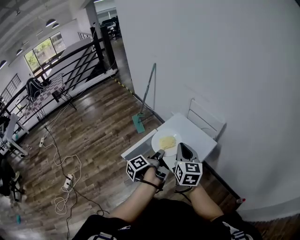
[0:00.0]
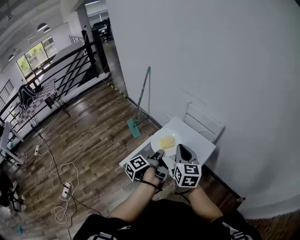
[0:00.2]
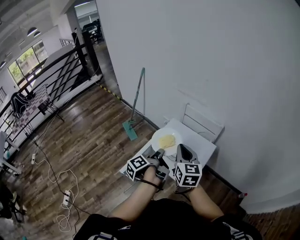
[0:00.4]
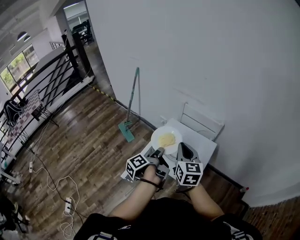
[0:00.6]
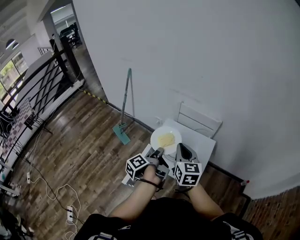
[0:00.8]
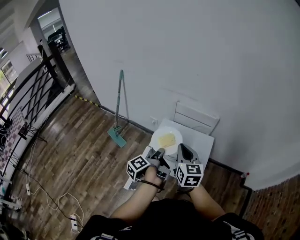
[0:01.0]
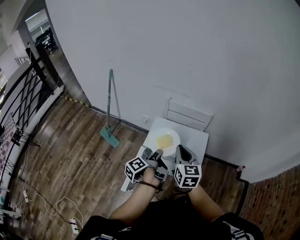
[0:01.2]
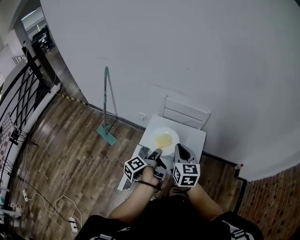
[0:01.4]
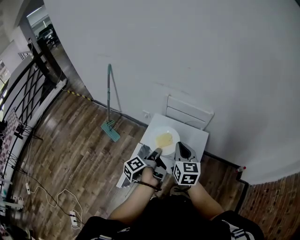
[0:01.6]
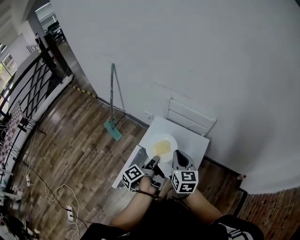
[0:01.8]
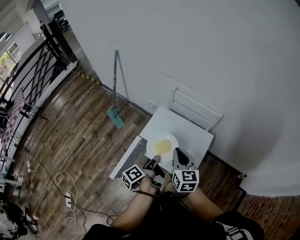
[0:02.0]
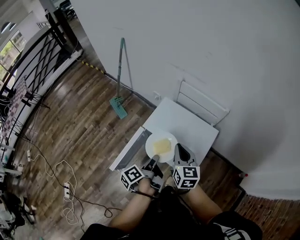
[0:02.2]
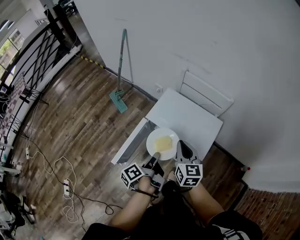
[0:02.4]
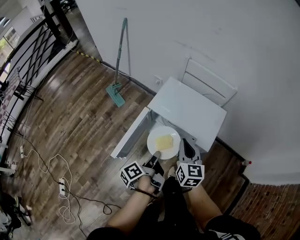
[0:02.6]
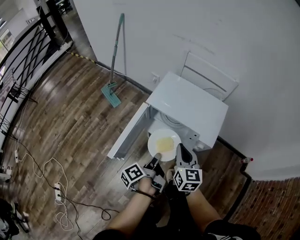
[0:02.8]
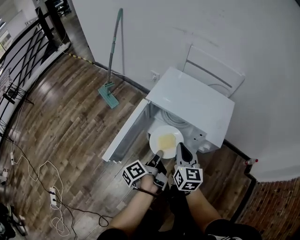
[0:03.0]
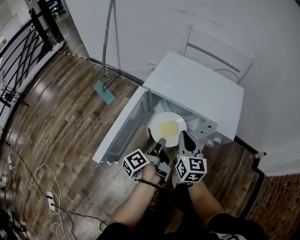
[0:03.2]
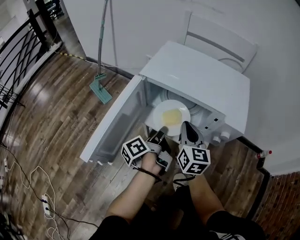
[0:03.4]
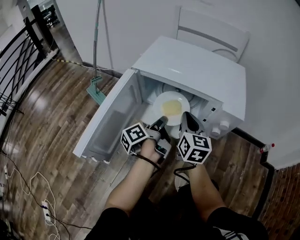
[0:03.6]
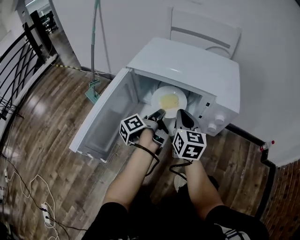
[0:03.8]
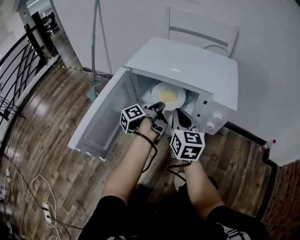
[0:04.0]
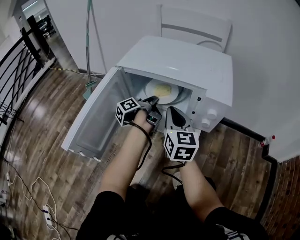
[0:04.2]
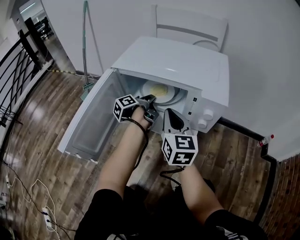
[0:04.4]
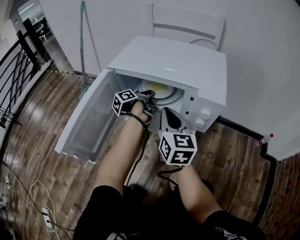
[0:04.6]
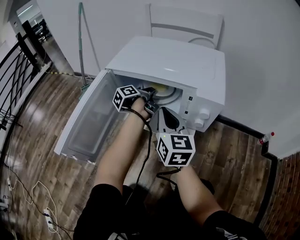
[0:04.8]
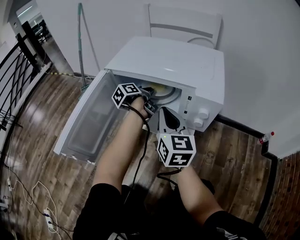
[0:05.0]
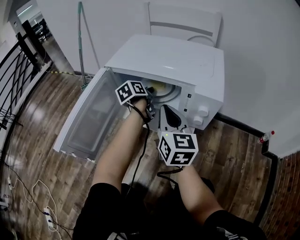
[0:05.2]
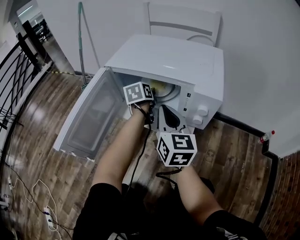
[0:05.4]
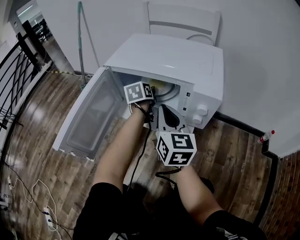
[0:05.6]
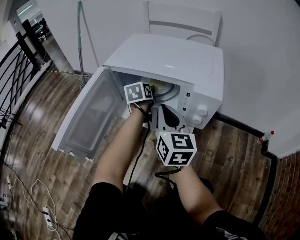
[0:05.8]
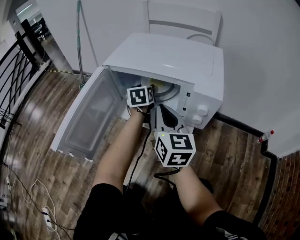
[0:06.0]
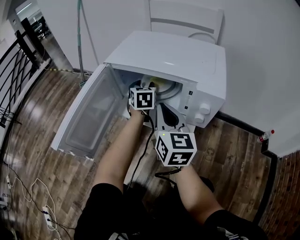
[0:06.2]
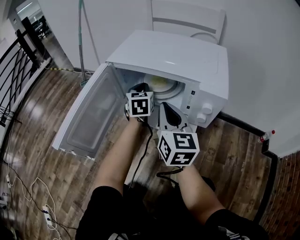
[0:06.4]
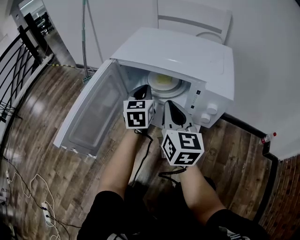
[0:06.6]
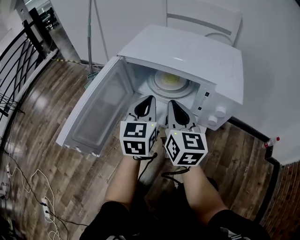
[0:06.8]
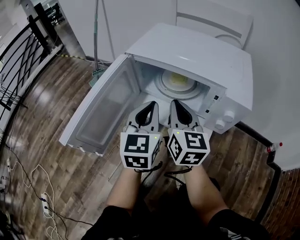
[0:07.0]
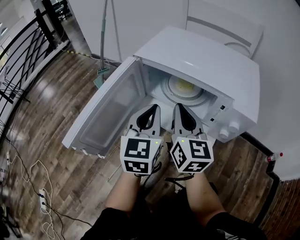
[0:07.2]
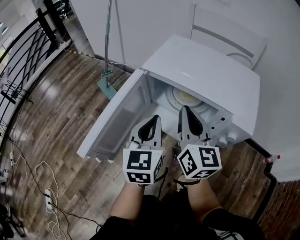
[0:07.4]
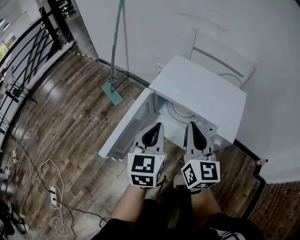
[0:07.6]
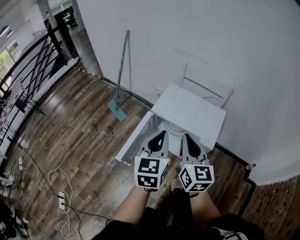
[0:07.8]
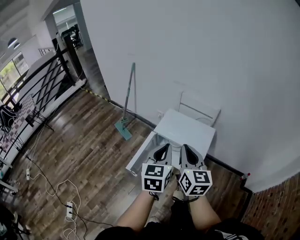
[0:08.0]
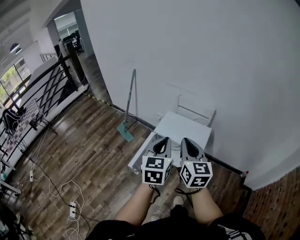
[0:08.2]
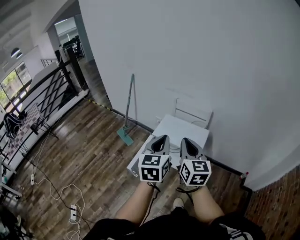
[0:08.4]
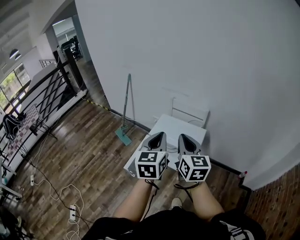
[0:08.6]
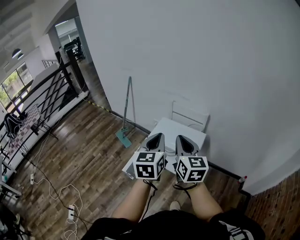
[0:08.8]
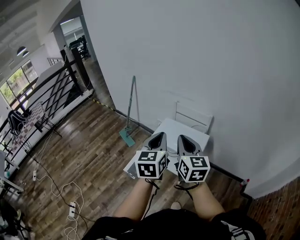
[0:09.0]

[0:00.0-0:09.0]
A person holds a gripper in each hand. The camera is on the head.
0:00.0 to 0:01.6: The right gripper changes place by approximately 15 cm, and turns by about 20 degrees.
0:01.6 to 0:03.0: The right gripper is displaced downward by some 30 cm.
0:03.0 to 0:04.4: The right gripper goes approximately 10 cm downward.
0:06.0 to 0:07.6: The right gripper shifts approximately 15 cm upward.
0:07.6 to 0:09.0: The right gripper travels upward by some 35 cm.

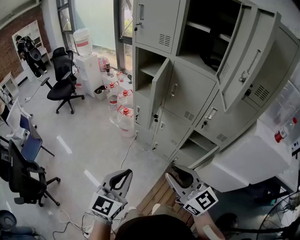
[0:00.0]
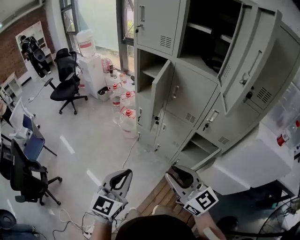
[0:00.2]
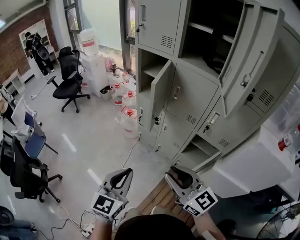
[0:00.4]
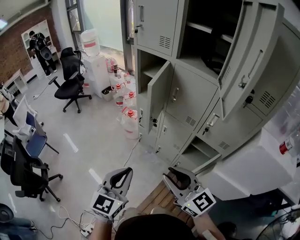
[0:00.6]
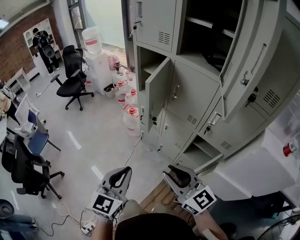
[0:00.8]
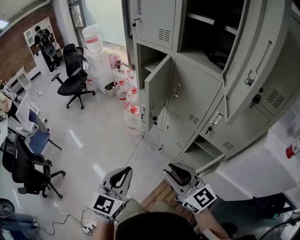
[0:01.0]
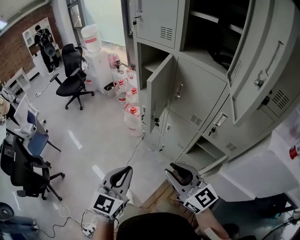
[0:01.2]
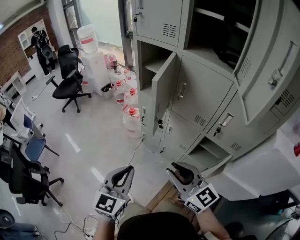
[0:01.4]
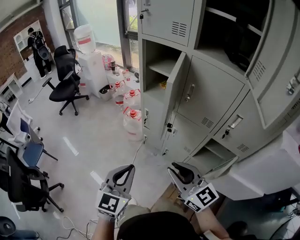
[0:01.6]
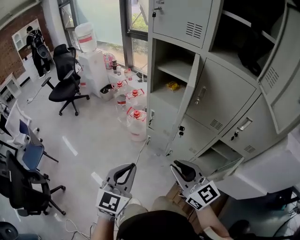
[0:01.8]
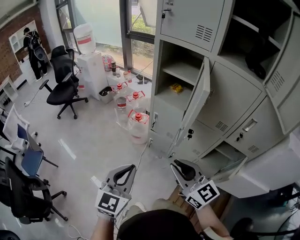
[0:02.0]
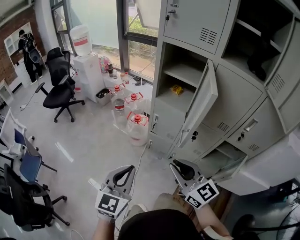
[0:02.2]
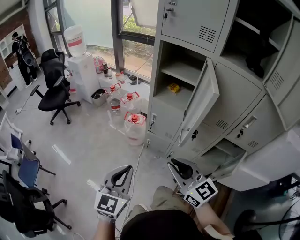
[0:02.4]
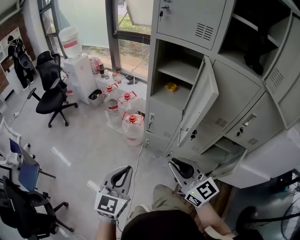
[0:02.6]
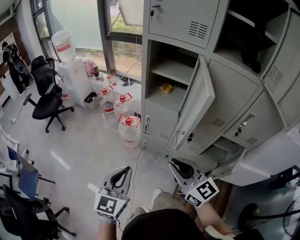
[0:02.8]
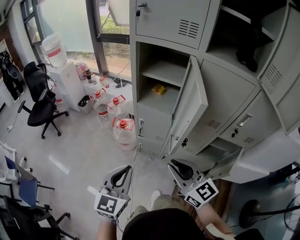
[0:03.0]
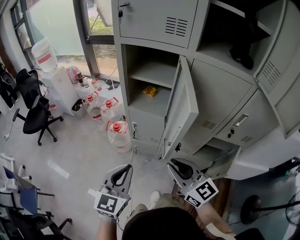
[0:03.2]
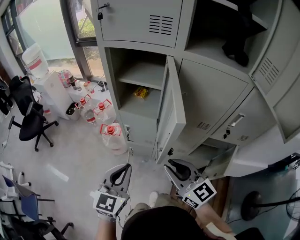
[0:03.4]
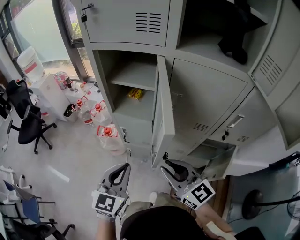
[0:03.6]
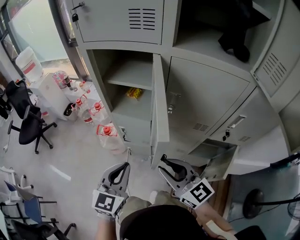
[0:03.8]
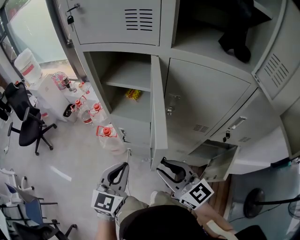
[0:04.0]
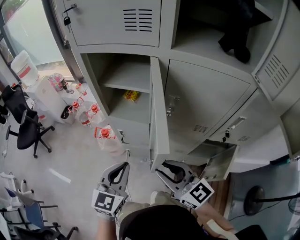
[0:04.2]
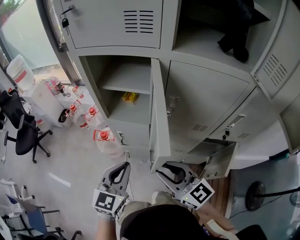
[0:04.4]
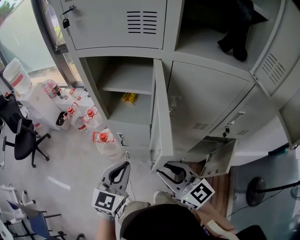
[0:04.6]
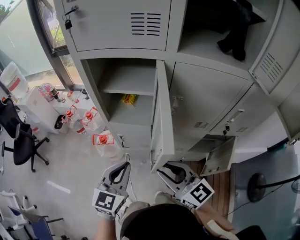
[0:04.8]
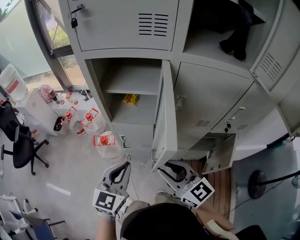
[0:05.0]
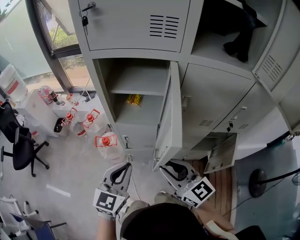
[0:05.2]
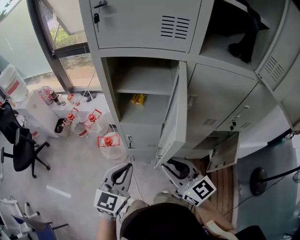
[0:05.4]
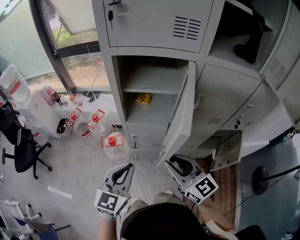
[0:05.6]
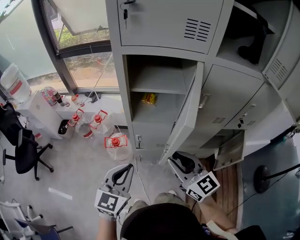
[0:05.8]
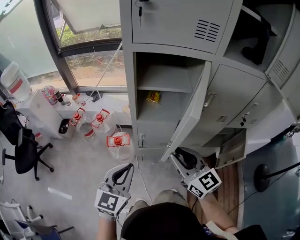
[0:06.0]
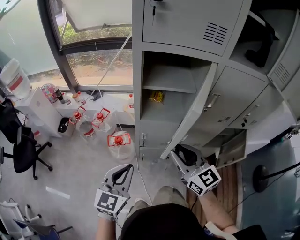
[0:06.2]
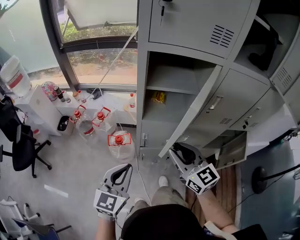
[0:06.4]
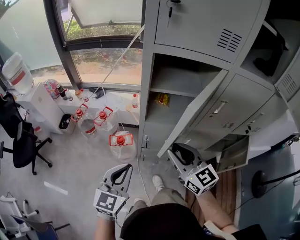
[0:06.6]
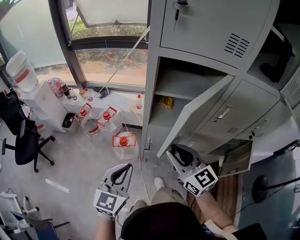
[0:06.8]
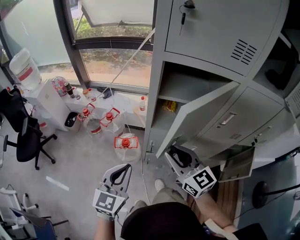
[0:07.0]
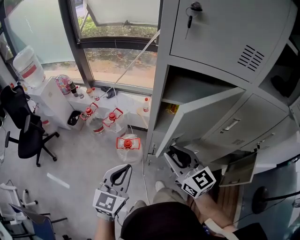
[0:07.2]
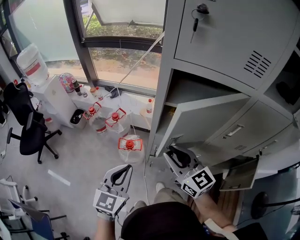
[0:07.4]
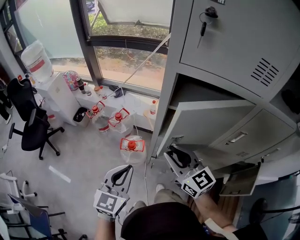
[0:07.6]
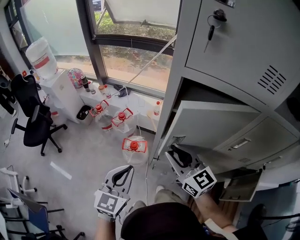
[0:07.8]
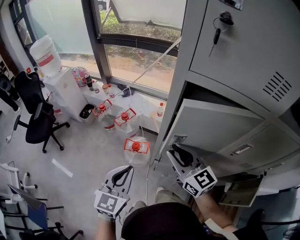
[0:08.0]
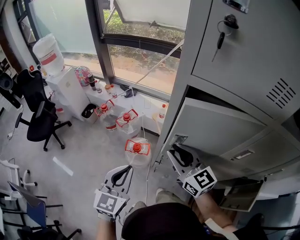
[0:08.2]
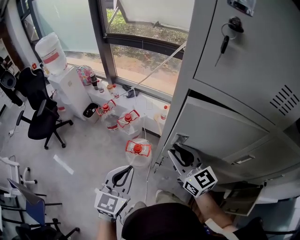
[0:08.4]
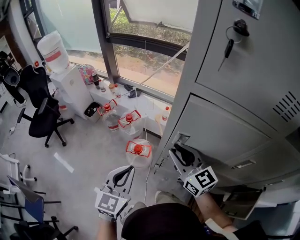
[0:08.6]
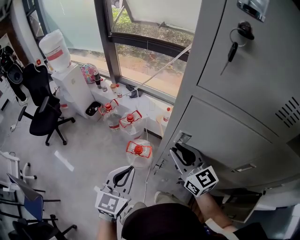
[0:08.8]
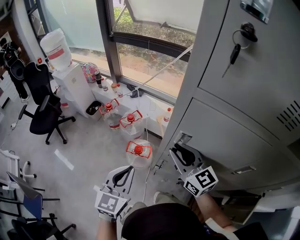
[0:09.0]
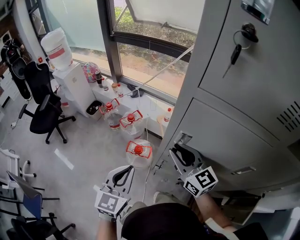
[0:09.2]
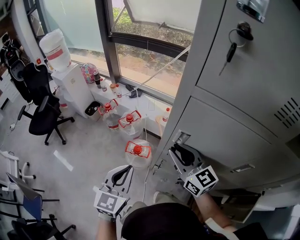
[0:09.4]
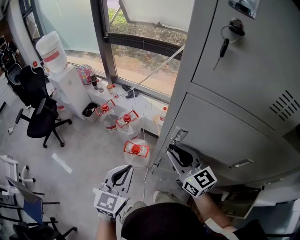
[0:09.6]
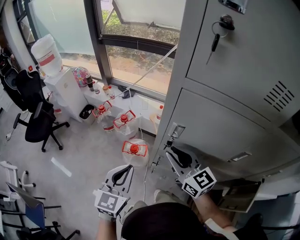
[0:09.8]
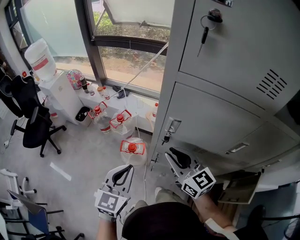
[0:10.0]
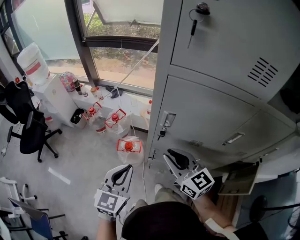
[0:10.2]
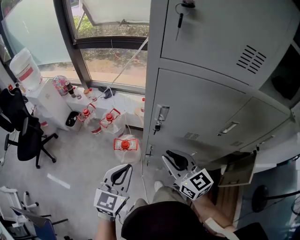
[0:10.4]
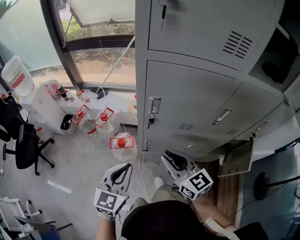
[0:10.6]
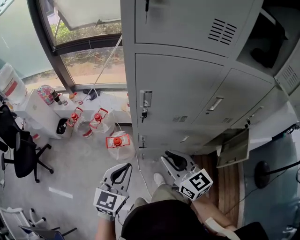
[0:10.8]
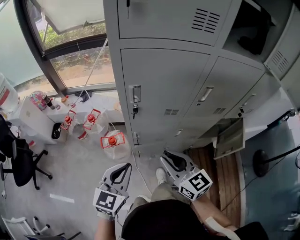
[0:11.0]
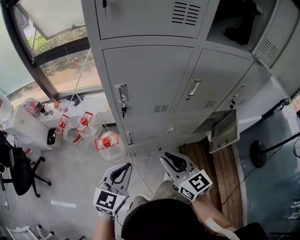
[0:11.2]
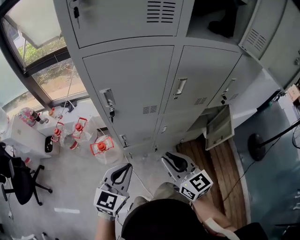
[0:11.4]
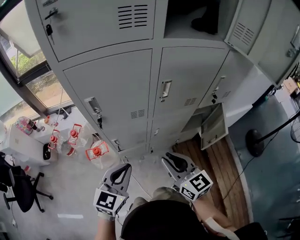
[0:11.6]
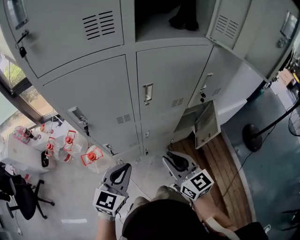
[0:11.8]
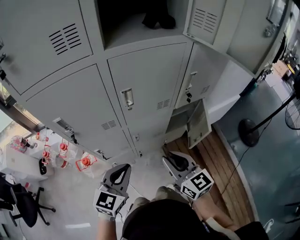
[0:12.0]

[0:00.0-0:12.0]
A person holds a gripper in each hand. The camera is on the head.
0:00.0 to 0:01.6: The grippers both shift forward and downward by approximately 15 cm.
0:01.6 to 0:03.0: The grippers both shift forward and to the left by some 15 cm.
0:03.0 to 0:04.4: The left gripper moves forward and to the right, about 20 cm, while the right gripper shifts roughly 10 cm forward and to the right.
0:04.4 to 0:06.0: The grippers both shift to the left by about 15 cm. The right gripper turns by about 20 degrees.
0:06.0 to 0:07.6: The right gripper shifts approximately 15 cm forward and to the left. Meanwhile the left gripper heads forward and to the left, covering about 10 cm.
0:07.6 to 0:09.0: The left gripper shifts some 5 cm forward. Meanwhile the right gripper is displaced forward by approximately 10 cm.
0:09.0 to 0:10.4: The right gripper is displaced backward by approximately 10 cm. The left gripper travels backward by about 5 cm.
0:10.4 to 0:12.0: The right gripper shifts by some 30 cm, and rotates roughly 30 degrees, while the left gripper changes place by some 30 cm, and rotates approximately 30 degrees.

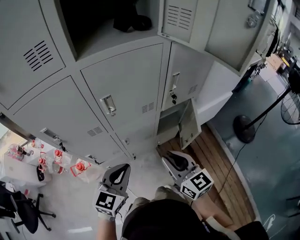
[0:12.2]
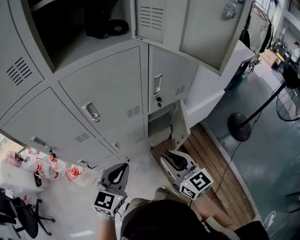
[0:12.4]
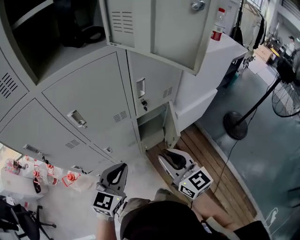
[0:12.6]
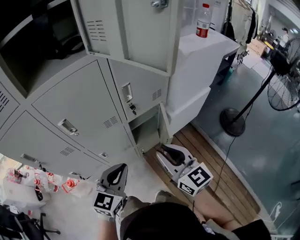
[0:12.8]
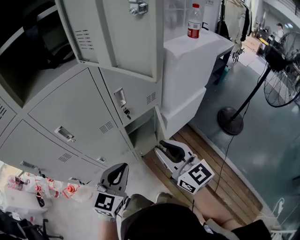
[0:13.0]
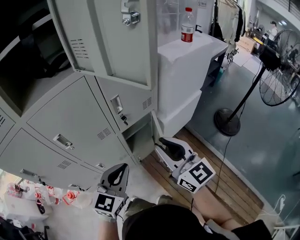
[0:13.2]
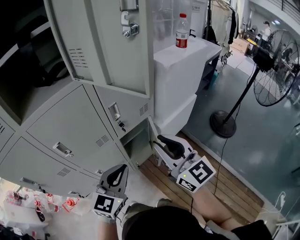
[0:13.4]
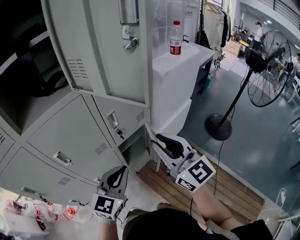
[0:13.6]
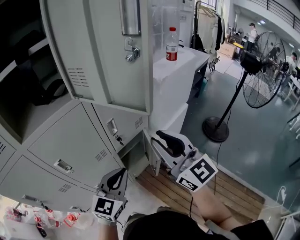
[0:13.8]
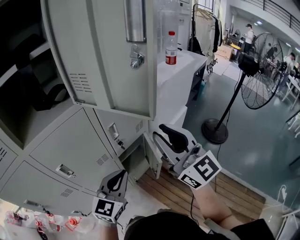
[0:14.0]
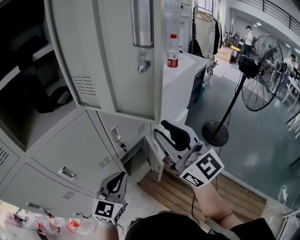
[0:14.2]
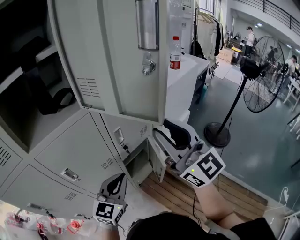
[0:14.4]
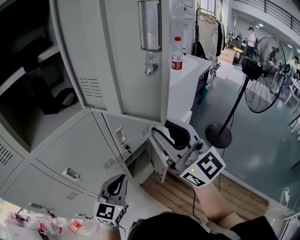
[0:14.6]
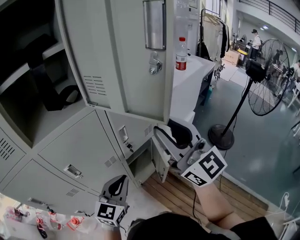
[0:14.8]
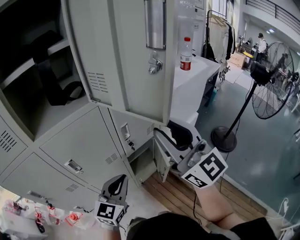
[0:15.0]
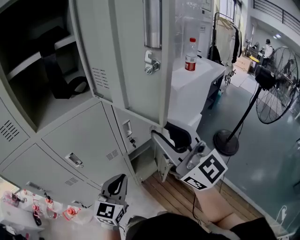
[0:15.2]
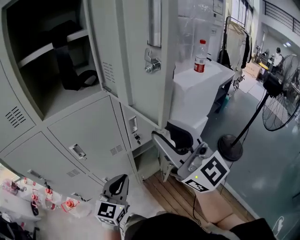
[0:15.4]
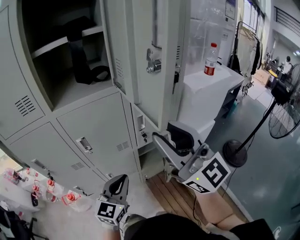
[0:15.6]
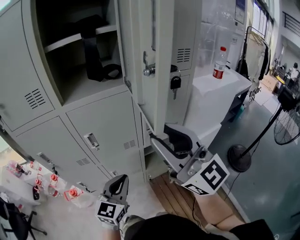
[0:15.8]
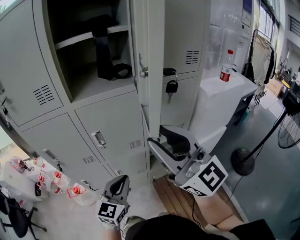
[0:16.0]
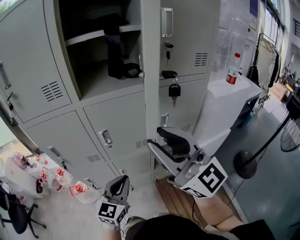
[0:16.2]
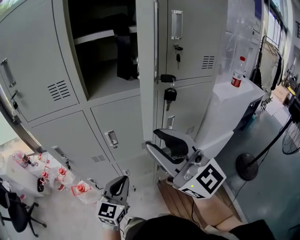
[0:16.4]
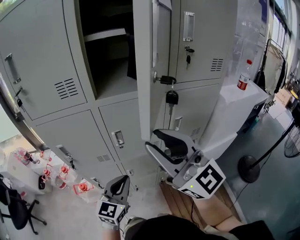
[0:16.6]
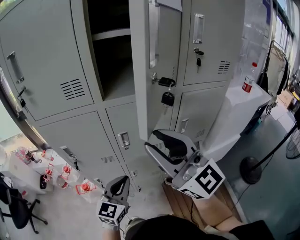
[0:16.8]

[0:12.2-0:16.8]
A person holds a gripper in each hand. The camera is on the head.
0:12.2 to 0:13.8: The right gripper heads upward, to the right and forward, covering some 30 cm, and rotates about 30 degrees, while the left gripper heads to the right, forward and upward, covering some 25 cm, and changes its angle by some 20 degrees.
0:13.8 to 0:15.2: The right gripper heads upward, covering approximately 10 cm.
0:15.2 to 0:16.8: Both grippers travel together to the left, roughly 20 cm. The right gripper swivels approximately 30 degrees; the left gripper rotates roughly 20 degrees.
